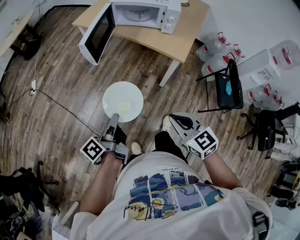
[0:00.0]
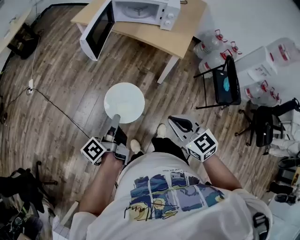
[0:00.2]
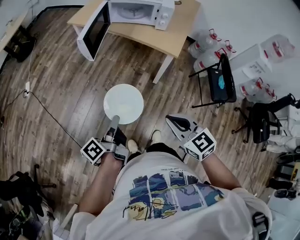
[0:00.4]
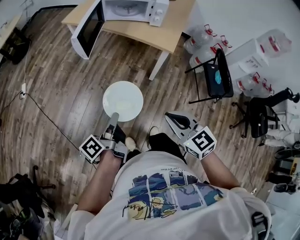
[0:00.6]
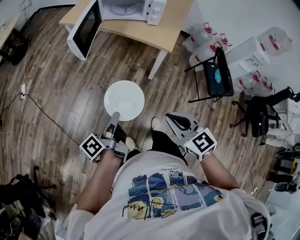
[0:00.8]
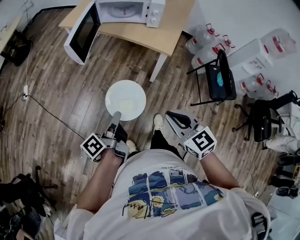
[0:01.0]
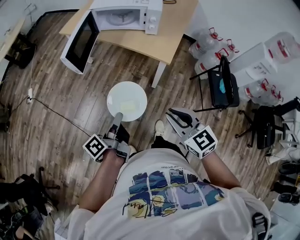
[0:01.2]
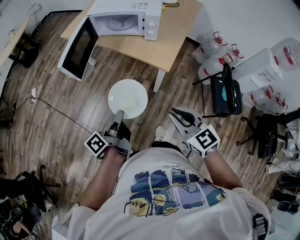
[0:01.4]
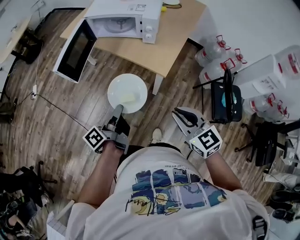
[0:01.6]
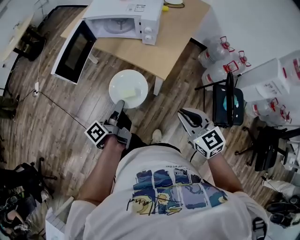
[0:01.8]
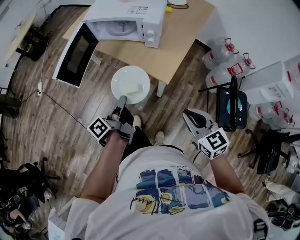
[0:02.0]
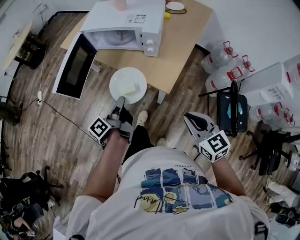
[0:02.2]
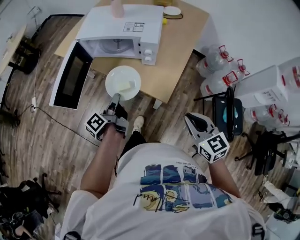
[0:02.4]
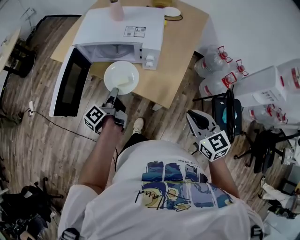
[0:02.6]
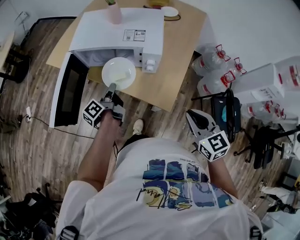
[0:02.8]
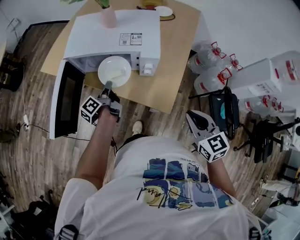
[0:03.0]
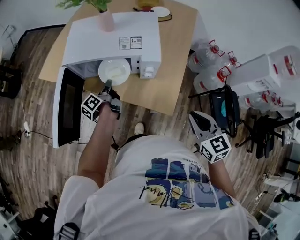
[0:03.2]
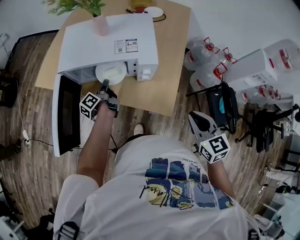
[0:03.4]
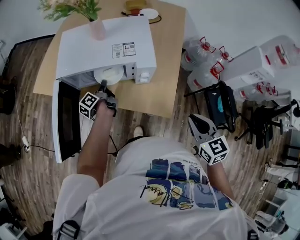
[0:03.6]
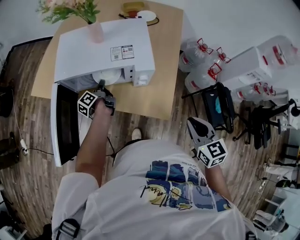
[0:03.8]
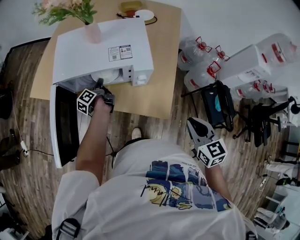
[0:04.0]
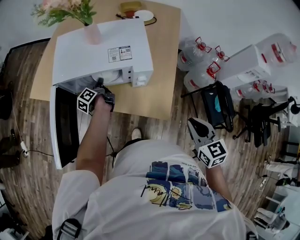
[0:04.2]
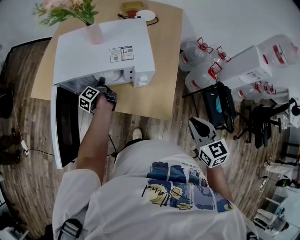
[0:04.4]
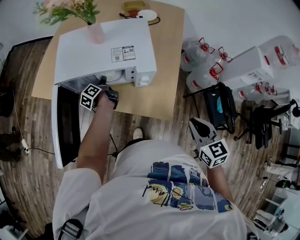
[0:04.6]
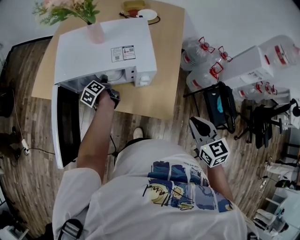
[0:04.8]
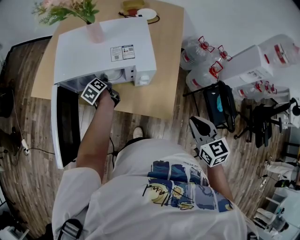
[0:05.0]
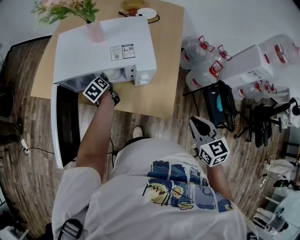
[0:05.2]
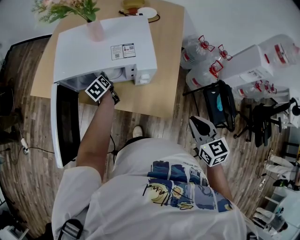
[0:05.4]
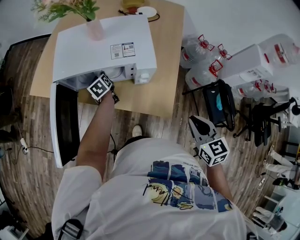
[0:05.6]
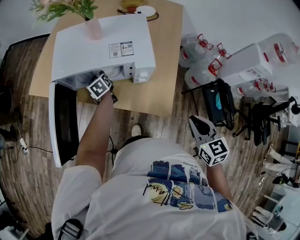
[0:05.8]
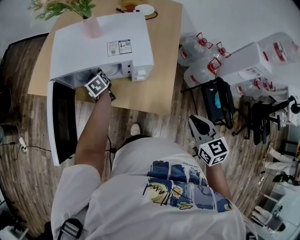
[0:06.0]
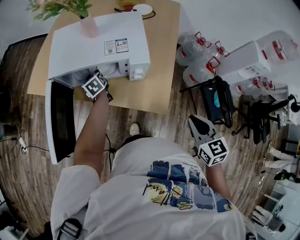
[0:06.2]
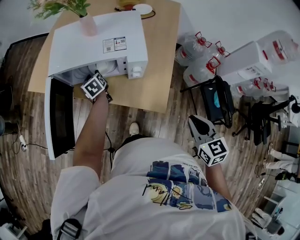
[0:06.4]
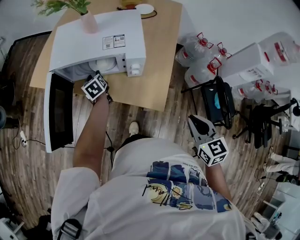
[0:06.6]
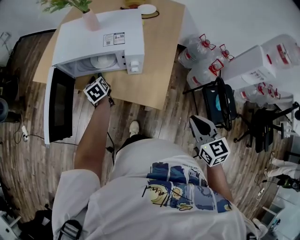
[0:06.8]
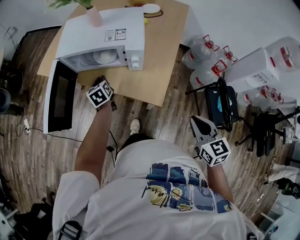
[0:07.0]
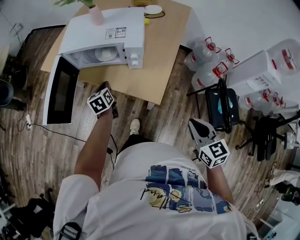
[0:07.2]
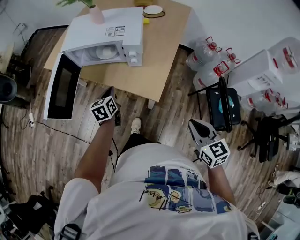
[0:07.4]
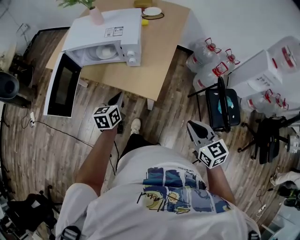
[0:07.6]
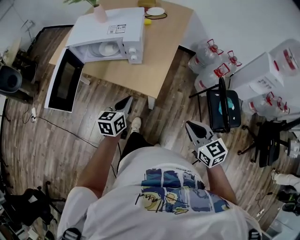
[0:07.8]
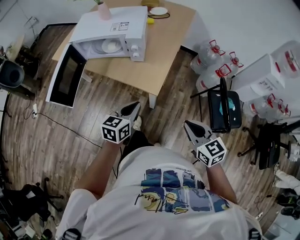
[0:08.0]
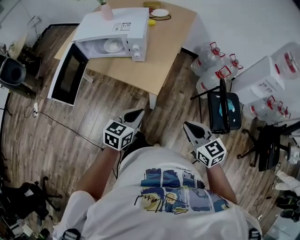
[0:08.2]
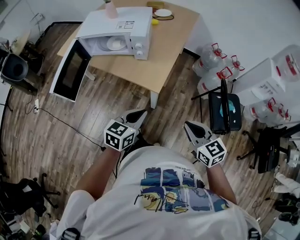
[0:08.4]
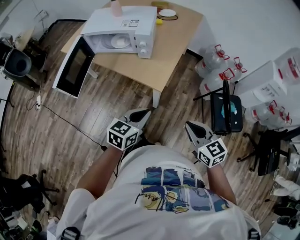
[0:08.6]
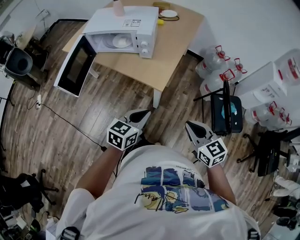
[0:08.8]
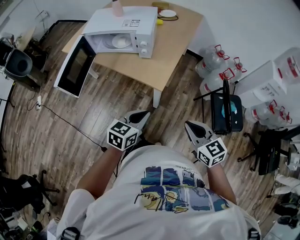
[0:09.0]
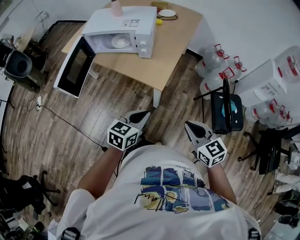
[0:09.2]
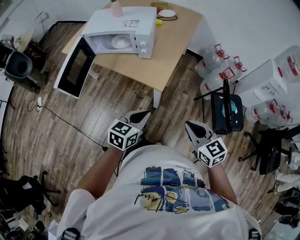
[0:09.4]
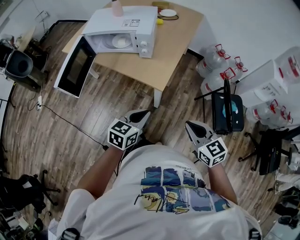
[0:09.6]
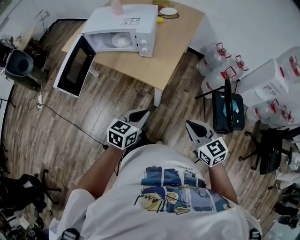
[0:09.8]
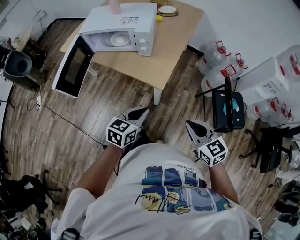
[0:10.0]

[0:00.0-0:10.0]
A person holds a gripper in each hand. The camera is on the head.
0.0 to 1.4 s: The two grippers go about 15 cm to the right and forward.
1.4 to 2.8 s: The left gripper is displaced forward by some 40 cm. The right gripper heads forward and to the right, covering approximately 30 cm.
2.8 to 4.2 s: The left gripper is displaced forward and downward by roughly 20 cm.
4.2 to 5.8 s: The left gripper rolls clockwise, seen from behind, by about 50 degrees, and opens.
5.8 to 7.2 s: The right gripper moves backward and to the right, some 15 cm, while the left gripper goes roughly 20 cm backward, and closes its fingers.
7.2 to 8.6 s: The left gripper goes approximately 35 cm backward and to the right, and swivels some 40 degrees; the right gripper goes some 10 cm backward.
8.6 to 10.0 s: The grippers make only small movements.

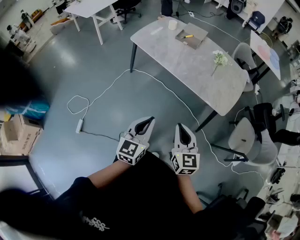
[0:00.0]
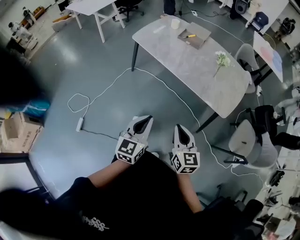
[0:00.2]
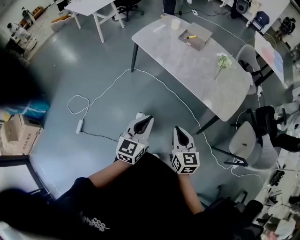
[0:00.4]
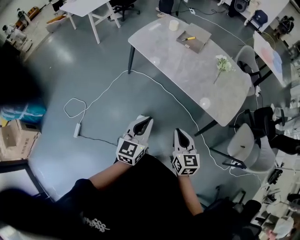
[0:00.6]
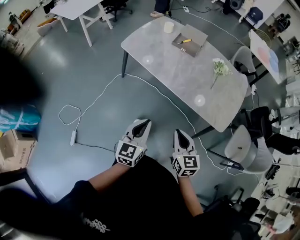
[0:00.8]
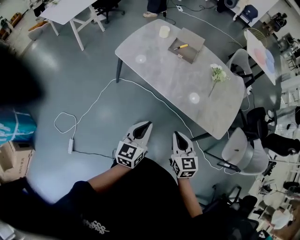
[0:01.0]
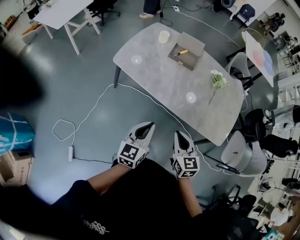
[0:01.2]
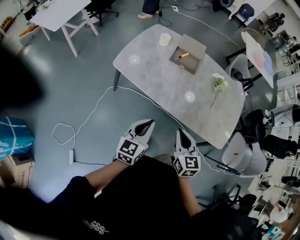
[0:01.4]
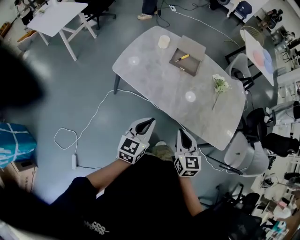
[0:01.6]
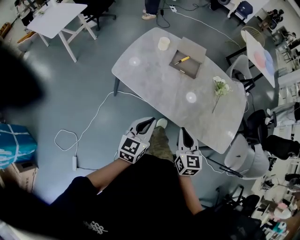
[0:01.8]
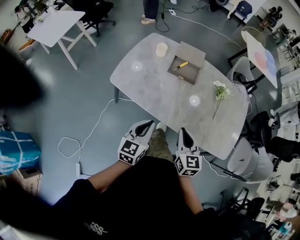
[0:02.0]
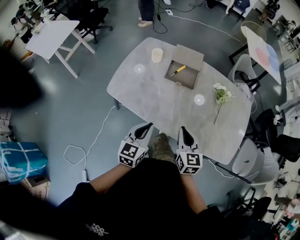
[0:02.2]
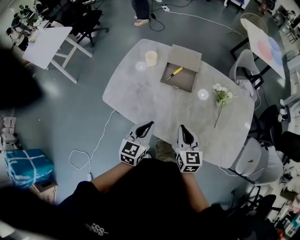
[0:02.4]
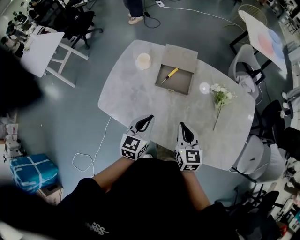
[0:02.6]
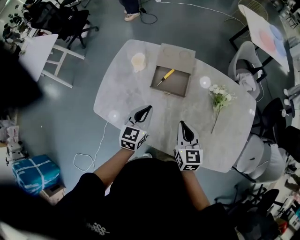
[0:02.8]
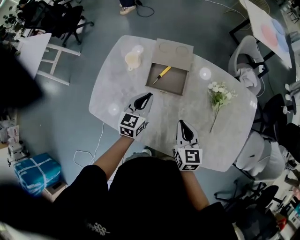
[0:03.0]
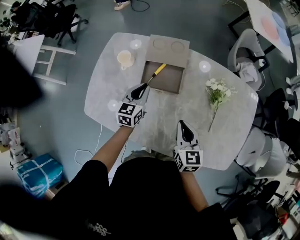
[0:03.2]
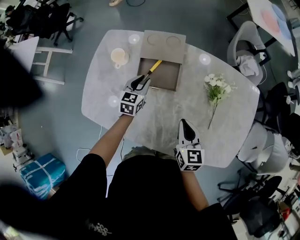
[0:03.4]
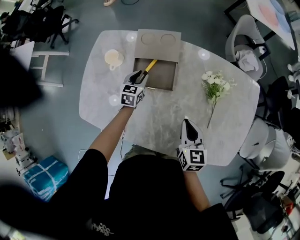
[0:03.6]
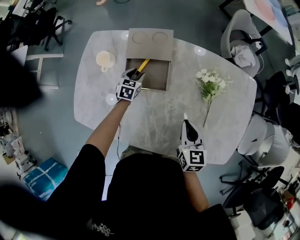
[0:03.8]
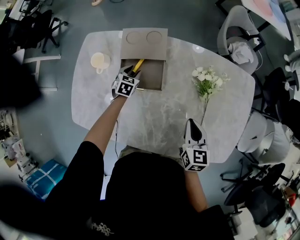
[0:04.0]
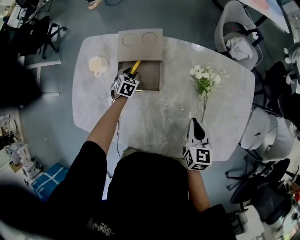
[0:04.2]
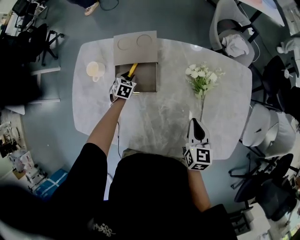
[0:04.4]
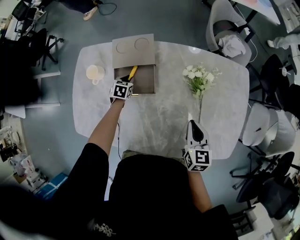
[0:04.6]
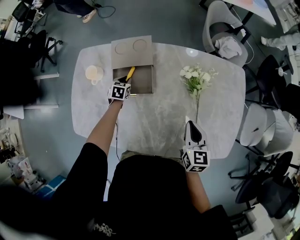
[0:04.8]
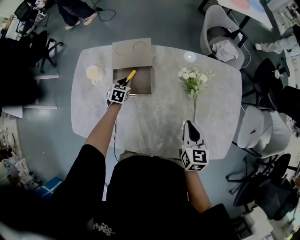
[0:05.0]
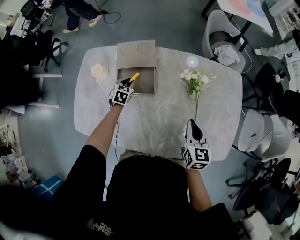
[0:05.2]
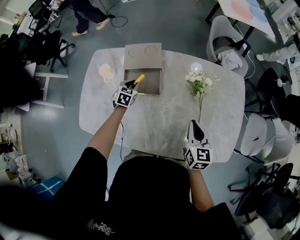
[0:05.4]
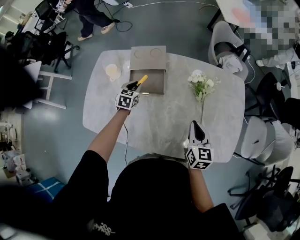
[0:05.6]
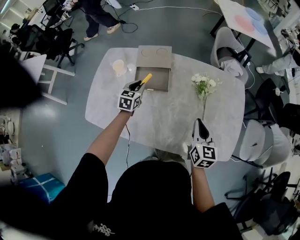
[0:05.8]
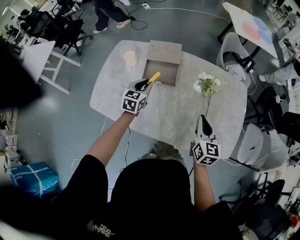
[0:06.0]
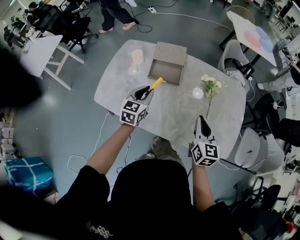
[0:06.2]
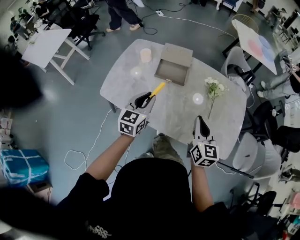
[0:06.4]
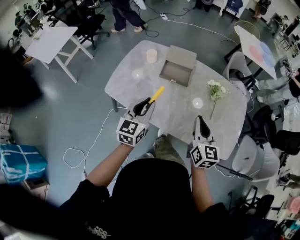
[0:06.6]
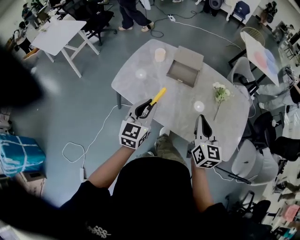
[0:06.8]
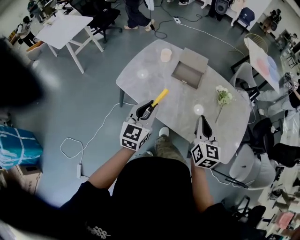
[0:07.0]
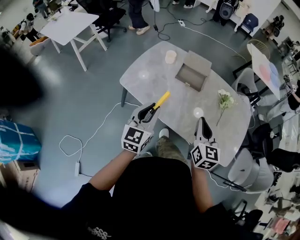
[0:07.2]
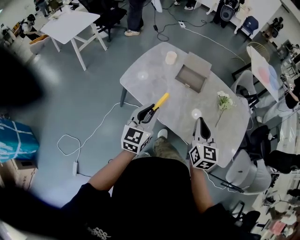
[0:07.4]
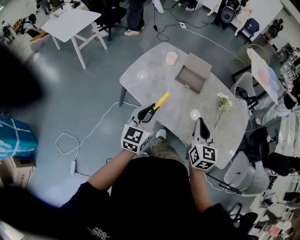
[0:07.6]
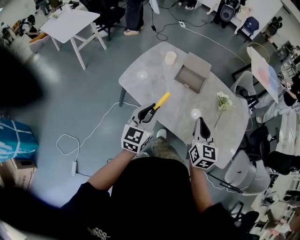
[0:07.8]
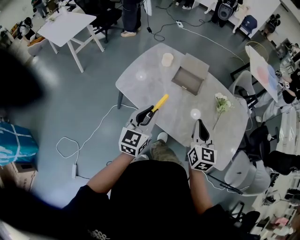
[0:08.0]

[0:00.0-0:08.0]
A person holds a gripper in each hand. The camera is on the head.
0.0 to 1.6 s: Both grippers are carried forward, roughly 40 cm.
1.6 to 3.2 s: The two grippers go roughly 40 cm forward.
3.2 to 4.8 s: The right gripper moves to the right, roughly 15 cm, while the left gripper heads downward and forward, covering about 20 cm, angles its fingers downward, by about 30 degrees, and opens, then closes once more.
4.8 to 6.4 s: The left gripper travels backward and upward by approximately 50 cm, and points its fingers about 40 degrees further upward. The right gripper heads backward, upward and to the left, covering some 25 cm, and turns by approximately 20 degrees.
6.4 to 8.0 s: The left gripper is displaced backward and to the left by some 15 cm. The right gripper is displaced to the left by roughly 10 cm.

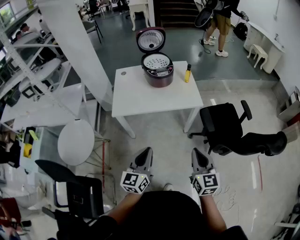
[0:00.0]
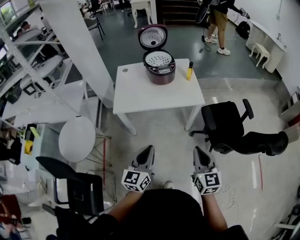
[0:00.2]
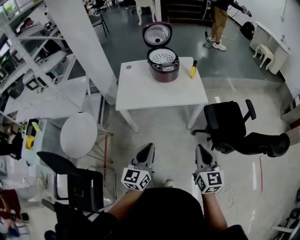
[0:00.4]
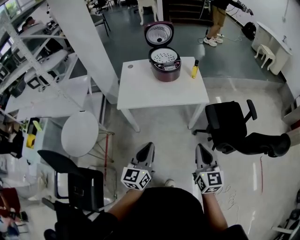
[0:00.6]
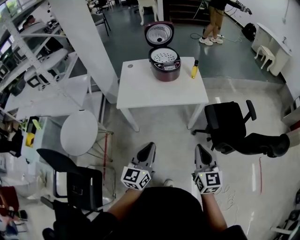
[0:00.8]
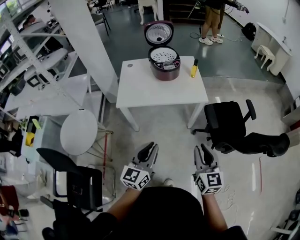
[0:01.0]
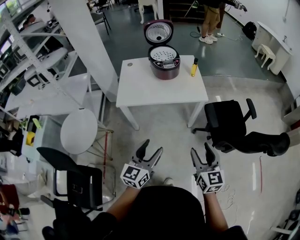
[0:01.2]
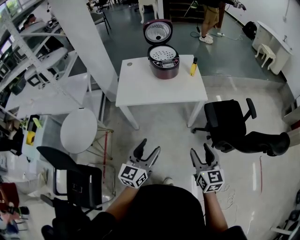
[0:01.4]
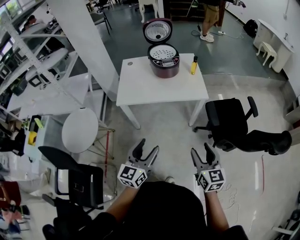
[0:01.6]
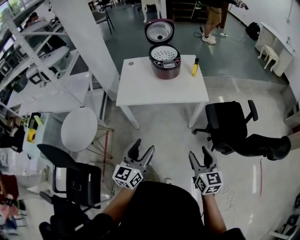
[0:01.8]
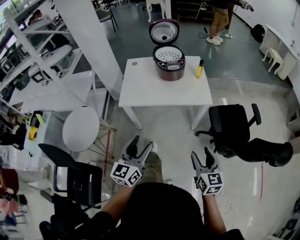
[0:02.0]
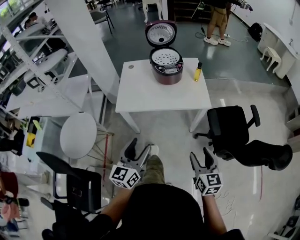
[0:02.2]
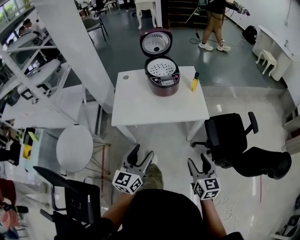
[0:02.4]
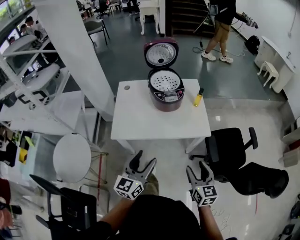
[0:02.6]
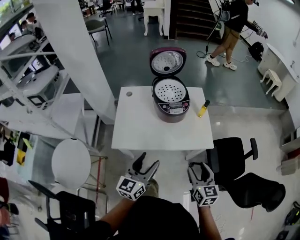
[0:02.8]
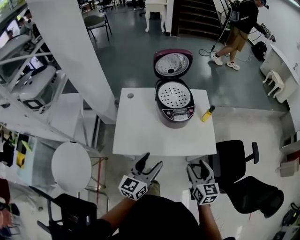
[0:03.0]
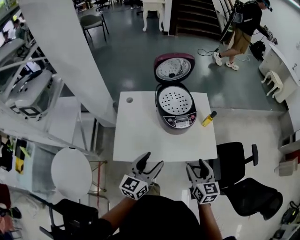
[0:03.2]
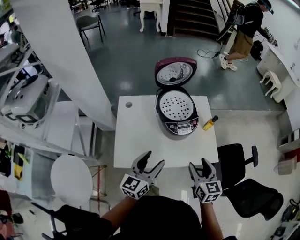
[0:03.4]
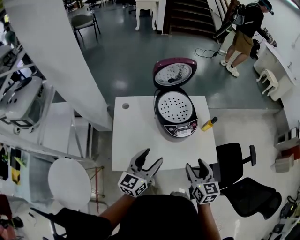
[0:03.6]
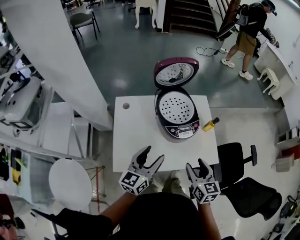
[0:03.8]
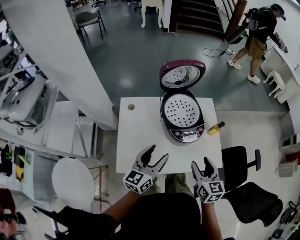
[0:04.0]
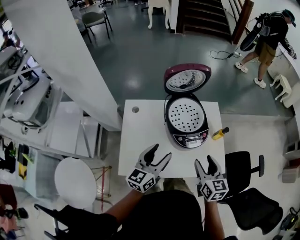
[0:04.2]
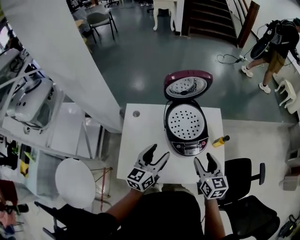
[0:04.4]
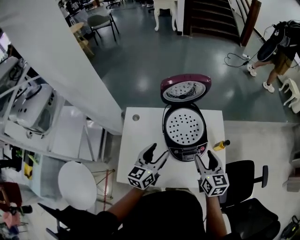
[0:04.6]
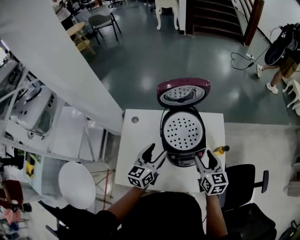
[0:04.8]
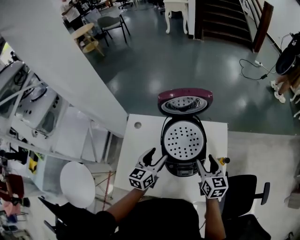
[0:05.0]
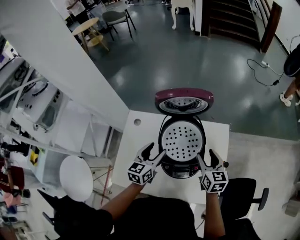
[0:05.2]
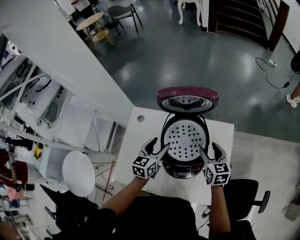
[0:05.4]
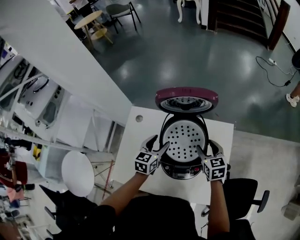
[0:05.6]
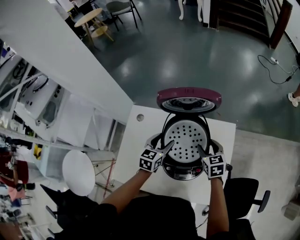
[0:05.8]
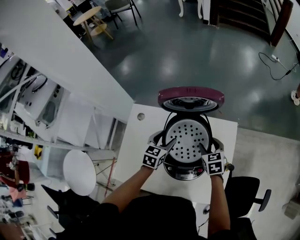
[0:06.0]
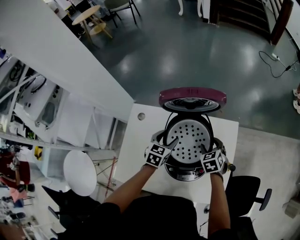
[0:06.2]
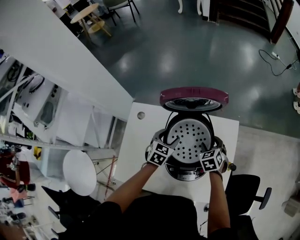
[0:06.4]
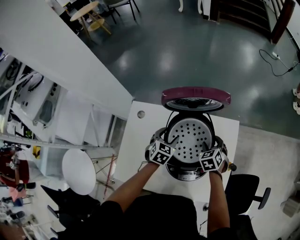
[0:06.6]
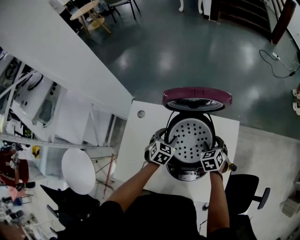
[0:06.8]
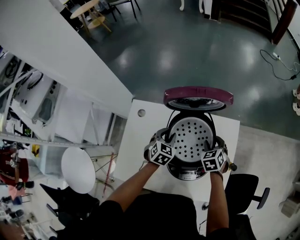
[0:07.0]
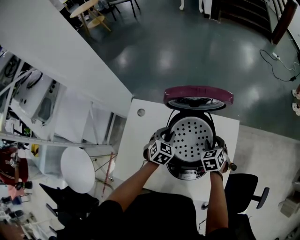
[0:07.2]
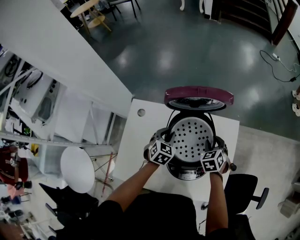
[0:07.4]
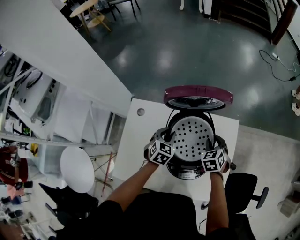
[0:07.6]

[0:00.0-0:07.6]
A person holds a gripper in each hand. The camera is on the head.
0.0 to 1.6 s: The left gripper opens up; the right gripper opens.
1.6 to 3.0 s: Both grippers travel together forward, roughly 35 cm.
3.0 to 4.6 s: The two grippers go some 30 cm forward.
4.6 to 6.0 s: Both grippers travel together forward and downward, some 20 cm. The right gripper rotates roughly 30 degrees, while the left gripper rotates about 30 degrees.
6.0 to 7.6 s: The left gripper closes. Meanwhile the right gripper swivels about 20 degrees, and closes up.
